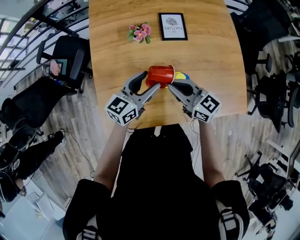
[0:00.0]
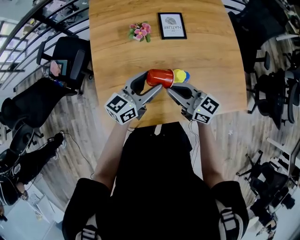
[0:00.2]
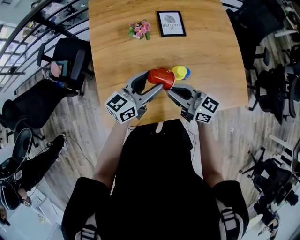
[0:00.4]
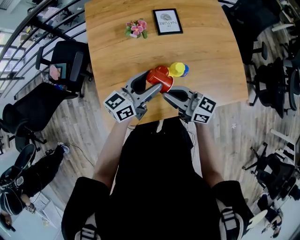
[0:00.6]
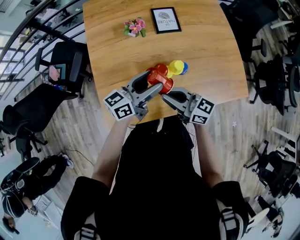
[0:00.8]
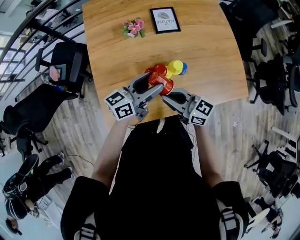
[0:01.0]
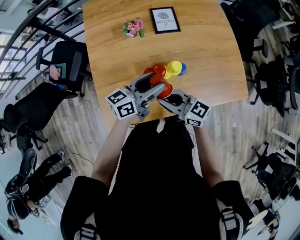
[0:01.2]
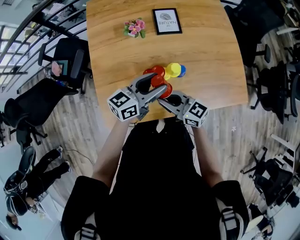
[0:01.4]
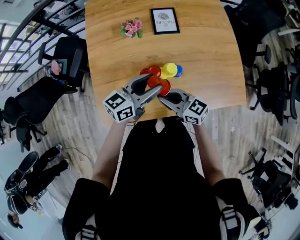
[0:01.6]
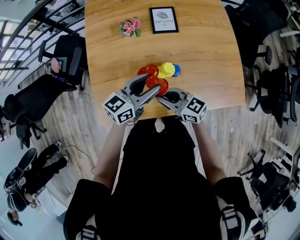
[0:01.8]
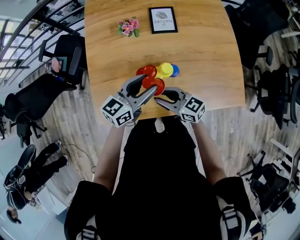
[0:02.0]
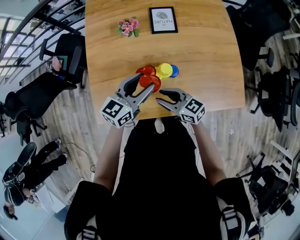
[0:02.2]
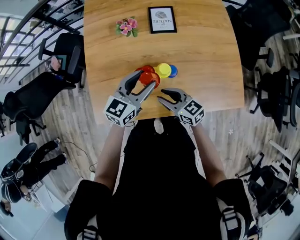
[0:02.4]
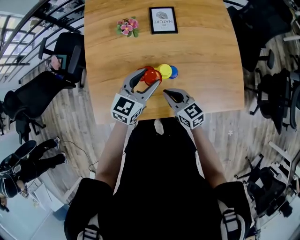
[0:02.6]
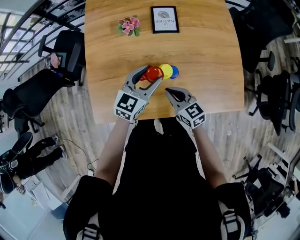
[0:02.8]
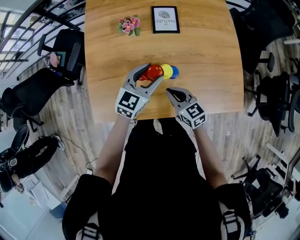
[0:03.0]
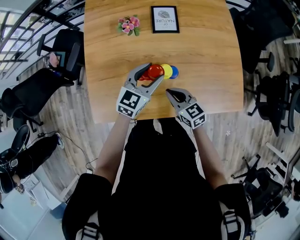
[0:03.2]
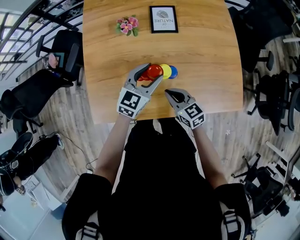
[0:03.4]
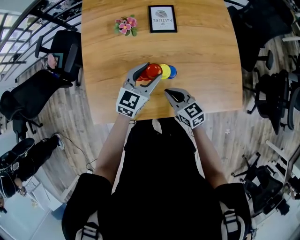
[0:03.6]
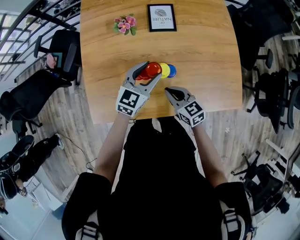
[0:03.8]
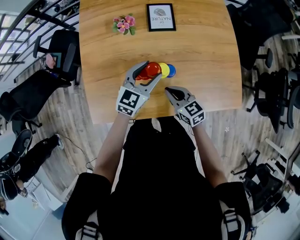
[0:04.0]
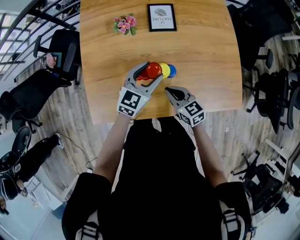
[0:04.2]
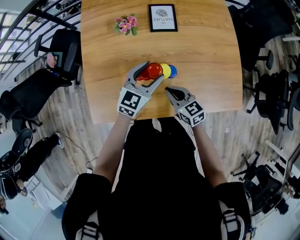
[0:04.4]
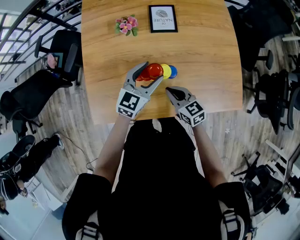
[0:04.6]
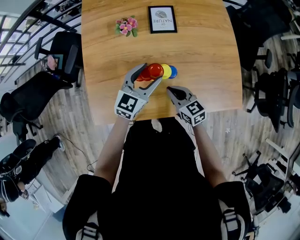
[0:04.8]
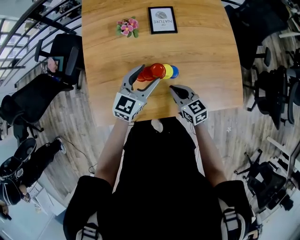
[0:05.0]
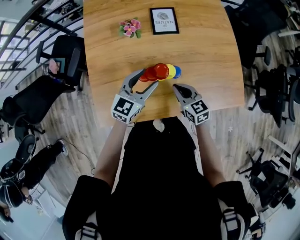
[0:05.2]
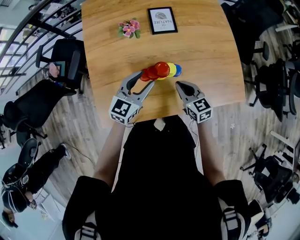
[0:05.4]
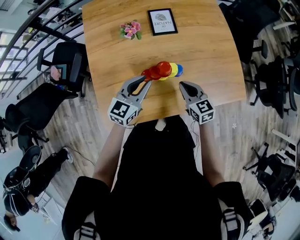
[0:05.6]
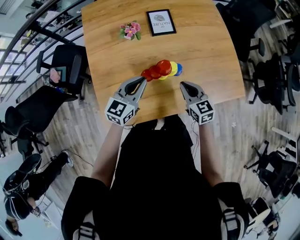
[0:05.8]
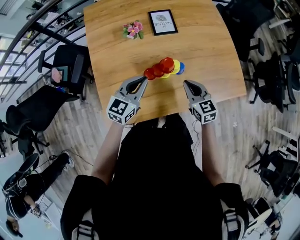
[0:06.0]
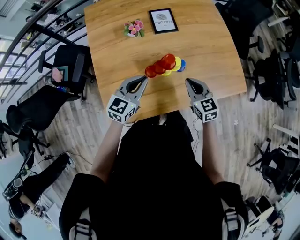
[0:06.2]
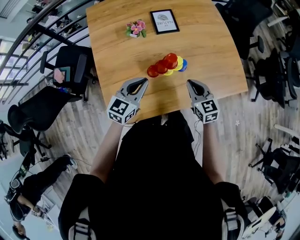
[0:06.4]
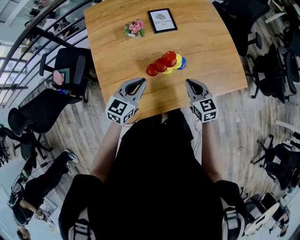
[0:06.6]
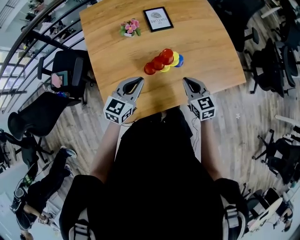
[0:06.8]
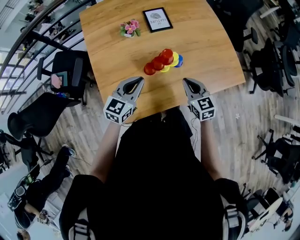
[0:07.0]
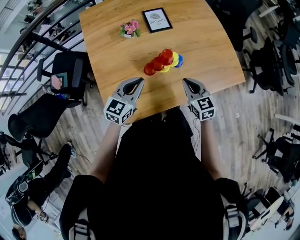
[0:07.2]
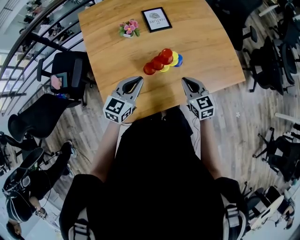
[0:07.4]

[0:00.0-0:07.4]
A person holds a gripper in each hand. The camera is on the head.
0.0 to 1.4 s: The left gripper heads backward, covering about 5 cm. Meanwhile the right gripper shifts some 10 cm backward.
1.4 to 3.0 s: The right gripper shifts some 10 cm to the right and downward, turns by some 20 degrees, and opens and closes again, while the left gripper moves about 5 cm, and swivels some 30 degrees.
3.0 to 4.4 s: The grippers move only a little.
4.4 to 6.0 s: The left gripper travels to the left and backward by some 10 cm, and closes; the right gripper shifts roughly 5 cm upward, and rotates approximately 20 degrees.
6.0 to 7.4 s: The grippers stay close to where they were, moving slightly.

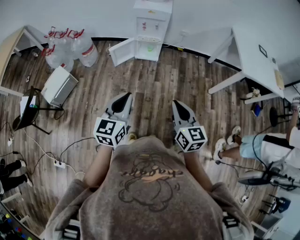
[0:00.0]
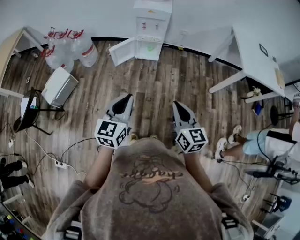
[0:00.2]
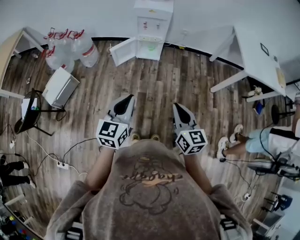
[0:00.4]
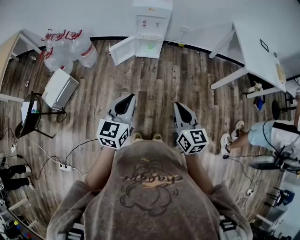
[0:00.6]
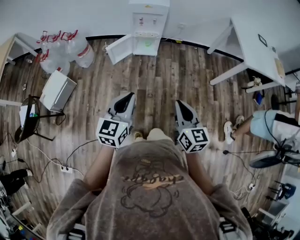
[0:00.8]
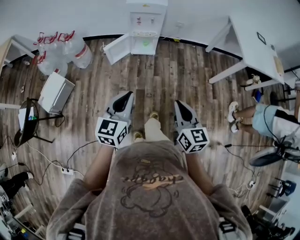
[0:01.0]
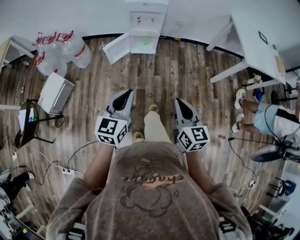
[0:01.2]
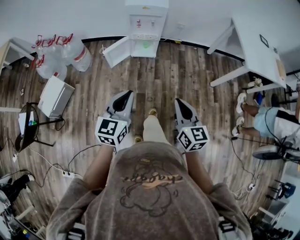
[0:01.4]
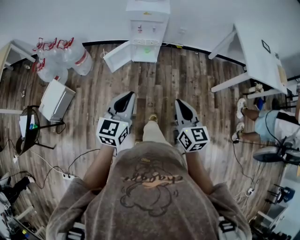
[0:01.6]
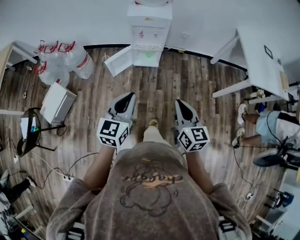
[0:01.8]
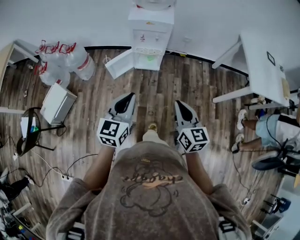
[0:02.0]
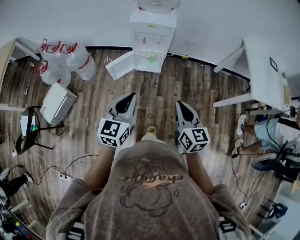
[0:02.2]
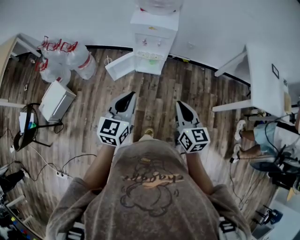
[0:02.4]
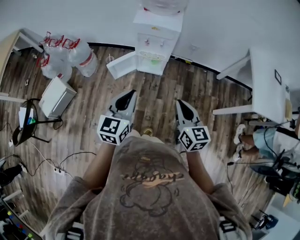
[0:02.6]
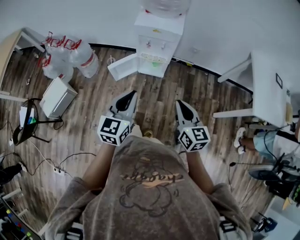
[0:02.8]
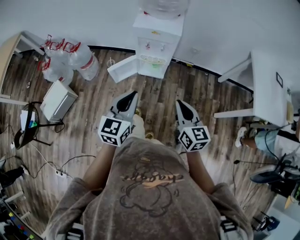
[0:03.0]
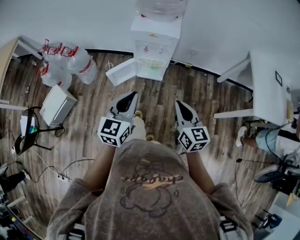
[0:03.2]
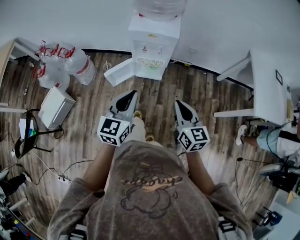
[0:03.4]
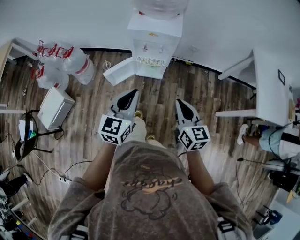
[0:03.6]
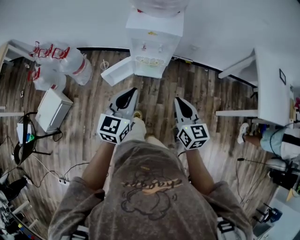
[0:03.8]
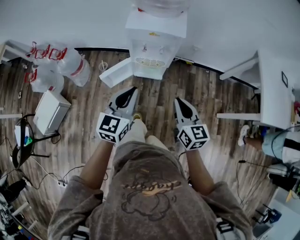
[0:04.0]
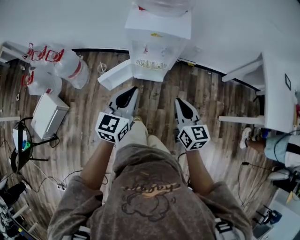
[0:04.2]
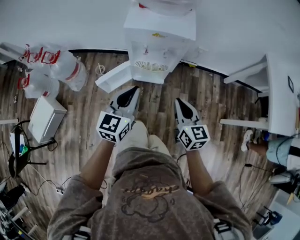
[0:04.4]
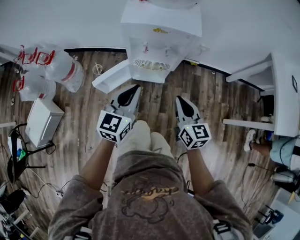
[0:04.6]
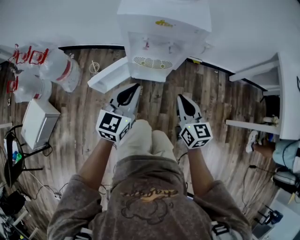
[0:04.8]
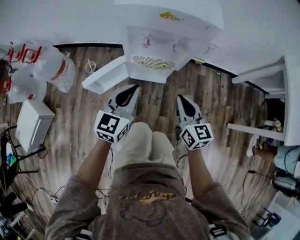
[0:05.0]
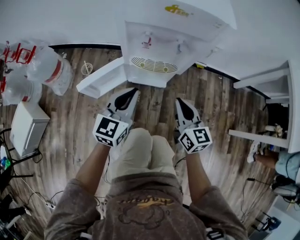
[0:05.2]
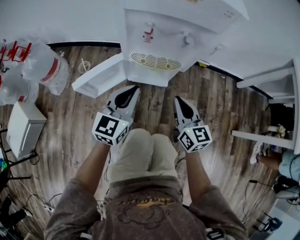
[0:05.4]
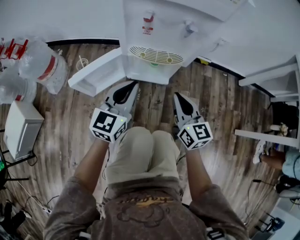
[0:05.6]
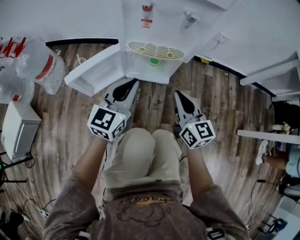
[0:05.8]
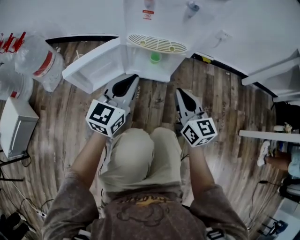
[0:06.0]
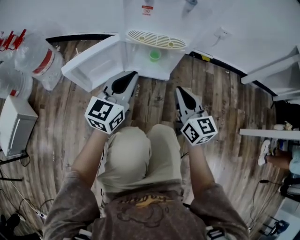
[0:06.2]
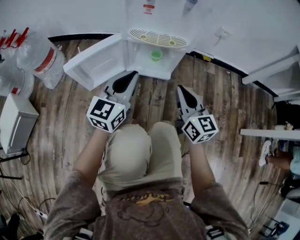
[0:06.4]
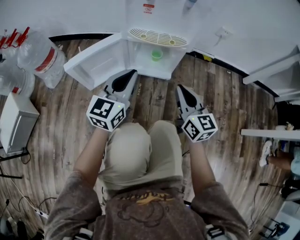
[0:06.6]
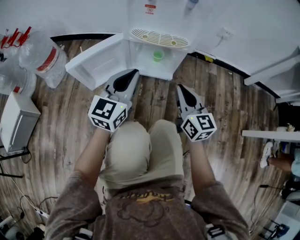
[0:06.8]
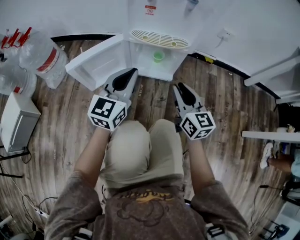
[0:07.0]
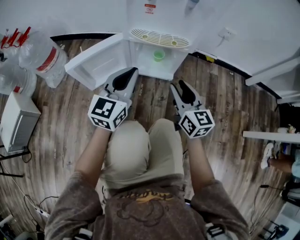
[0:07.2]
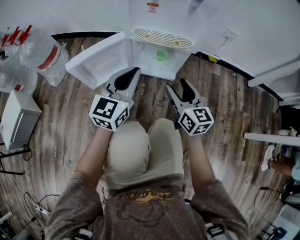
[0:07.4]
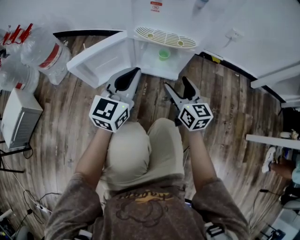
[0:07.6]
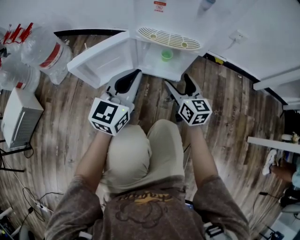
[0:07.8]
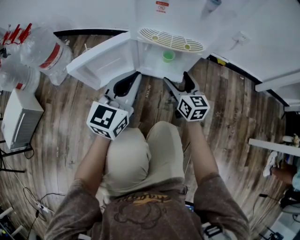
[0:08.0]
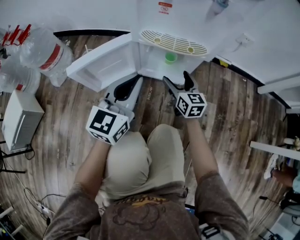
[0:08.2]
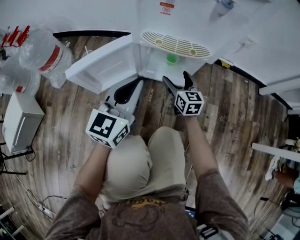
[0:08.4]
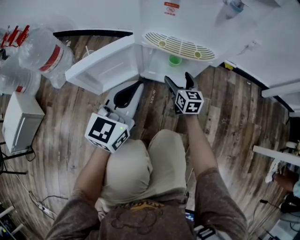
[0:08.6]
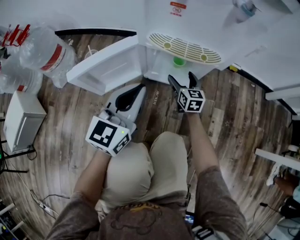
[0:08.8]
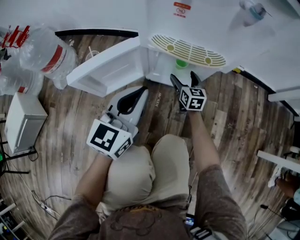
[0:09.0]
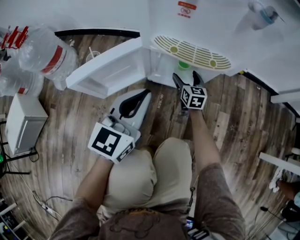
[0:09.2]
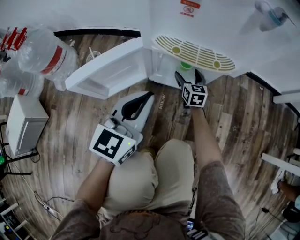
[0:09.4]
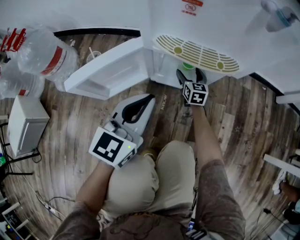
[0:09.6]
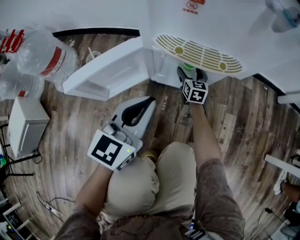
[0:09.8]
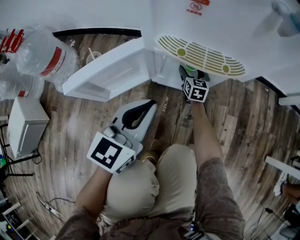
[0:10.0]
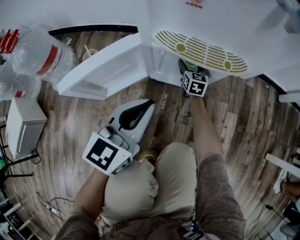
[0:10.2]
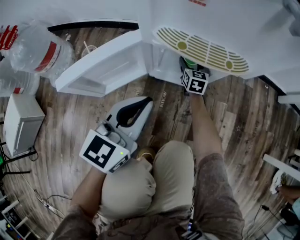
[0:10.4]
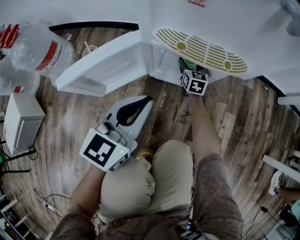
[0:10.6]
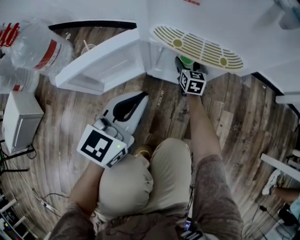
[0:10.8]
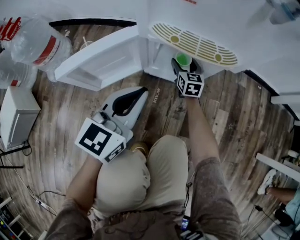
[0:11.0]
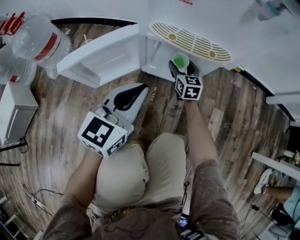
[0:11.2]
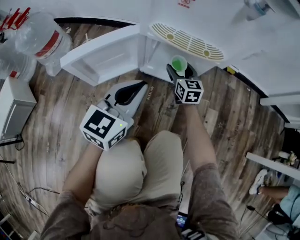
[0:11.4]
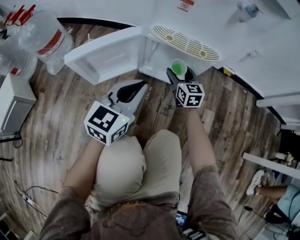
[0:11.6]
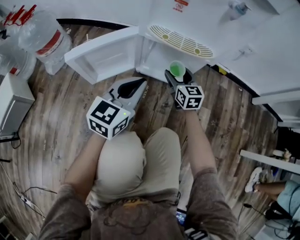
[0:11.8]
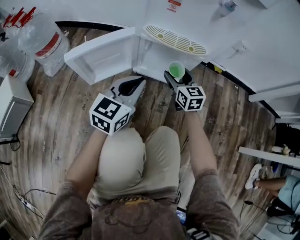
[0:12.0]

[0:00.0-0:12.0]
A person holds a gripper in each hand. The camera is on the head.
0.0 to 1.6 s: The grippers both shift forward by approximately 15 cm.
1.6 to 3.0 s: Both grippers travel together forward, approximately 20 cm.
3.0 to 4.4 s: The two grippers go some 25 cm forward and downward.
4.4 to 6.0 s: Both grippers travel together downward, approximately 35 cm.
6.0 to 7.6 s: The right gripper goes roughly 5 cm downward, and opens its fingers.
7.6 to 9.0 s: The left gripper ends up some 5 cm from where it was; the right gripper shifts some 25 cm downward and forward.
9.0 to 10.4 s: The right gripper travels forward and downward by roughly 10 cm.
10.4 to 12.0 s: The right gripper moves upward and backward, roughly 25 cm. The left gripper changes place by roughly 5 cm.

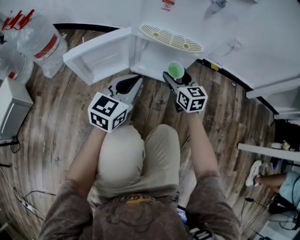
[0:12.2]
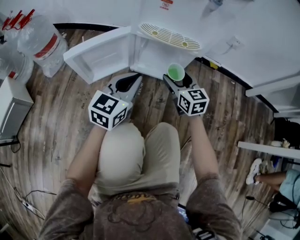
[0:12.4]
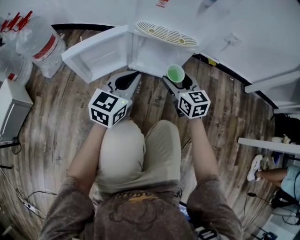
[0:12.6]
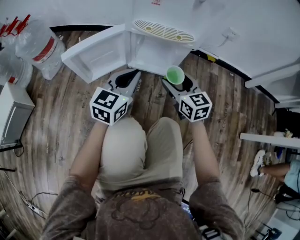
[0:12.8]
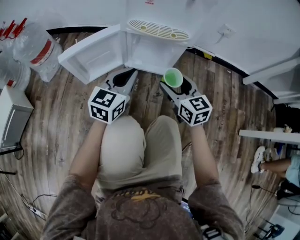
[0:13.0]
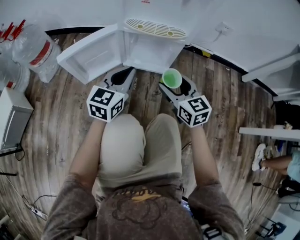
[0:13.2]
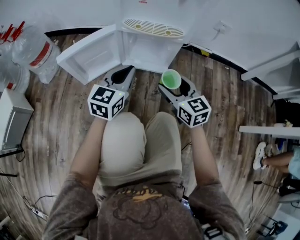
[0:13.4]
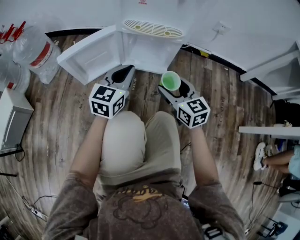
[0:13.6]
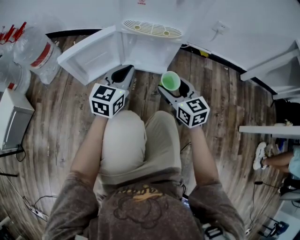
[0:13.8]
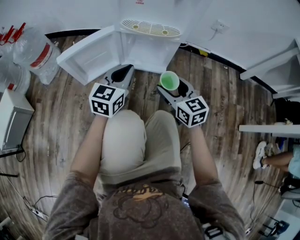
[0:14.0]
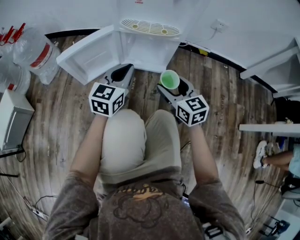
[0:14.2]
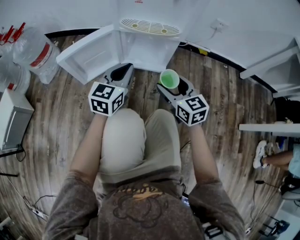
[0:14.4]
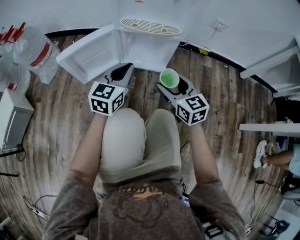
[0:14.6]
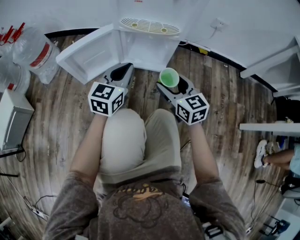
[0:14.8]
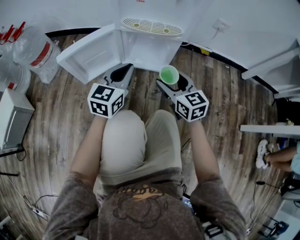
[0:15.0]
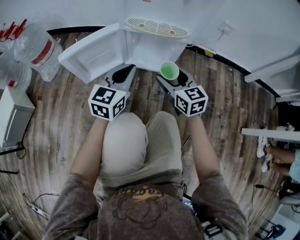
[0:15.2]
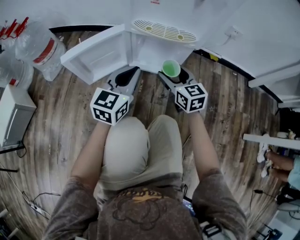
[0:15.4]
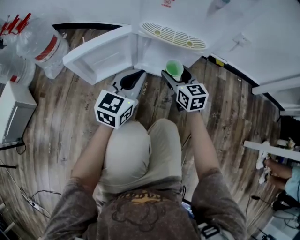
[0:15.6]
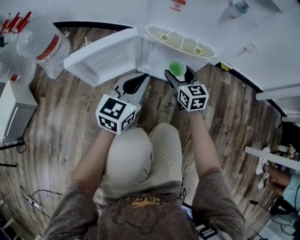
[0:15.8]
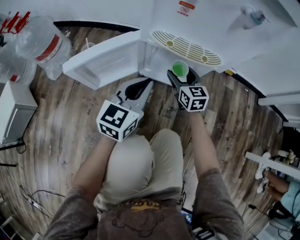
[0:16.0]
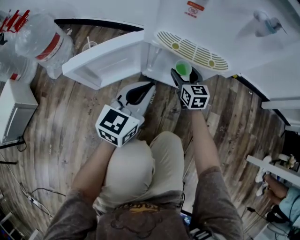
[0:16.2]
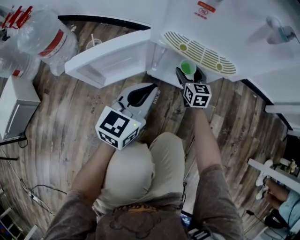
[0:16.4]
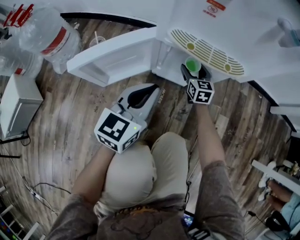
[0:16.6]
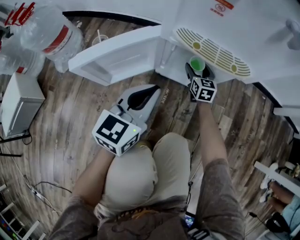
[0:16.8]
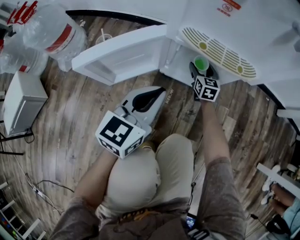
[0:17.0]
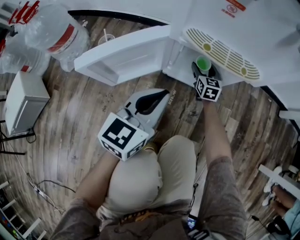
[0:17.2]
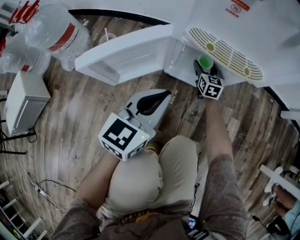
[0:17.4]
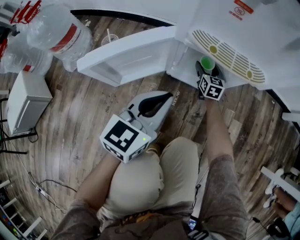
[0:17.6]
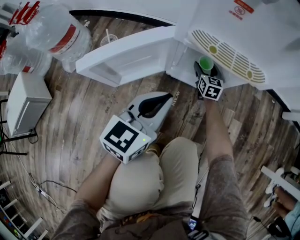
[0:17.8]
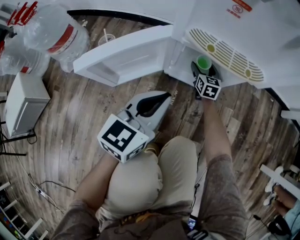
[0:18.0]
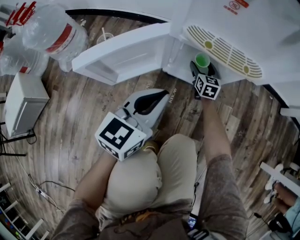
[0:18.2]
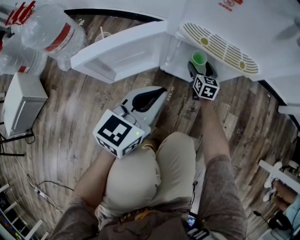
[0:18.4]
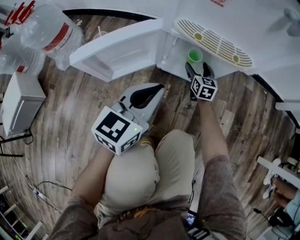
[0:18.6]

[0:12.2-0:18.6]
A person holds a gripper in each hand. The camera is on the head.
12.2 to 13.8 s: The right gripper shifts about 15 cm backward.
13.8 to 15.4 s: The right gripper travels forward by roughly 10 cm.
15.4 to 17.0 s: The left gripper moves some 5 cm. Meanwhile the right gripper heads forward and downward, covering about 25 cm.
17.0 to 18.6 s: The grippers move only a little.
